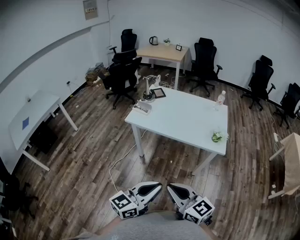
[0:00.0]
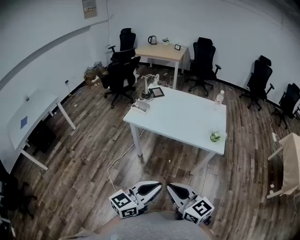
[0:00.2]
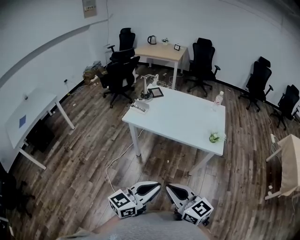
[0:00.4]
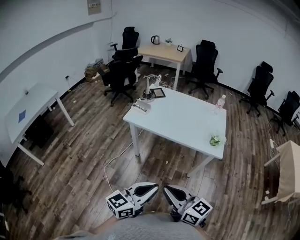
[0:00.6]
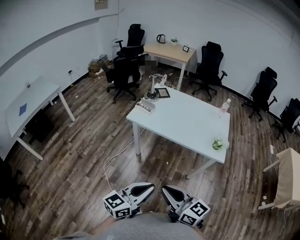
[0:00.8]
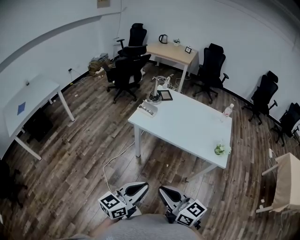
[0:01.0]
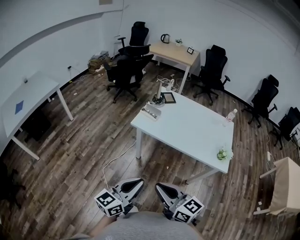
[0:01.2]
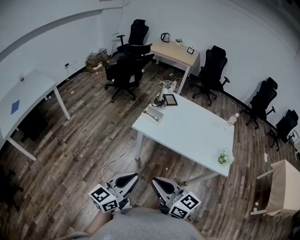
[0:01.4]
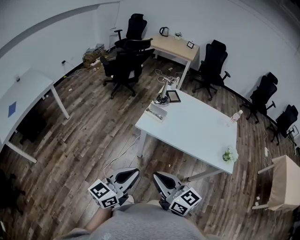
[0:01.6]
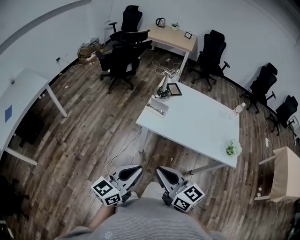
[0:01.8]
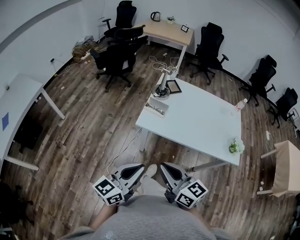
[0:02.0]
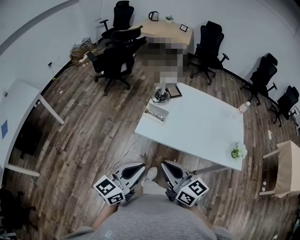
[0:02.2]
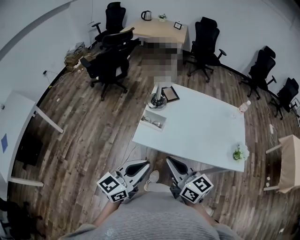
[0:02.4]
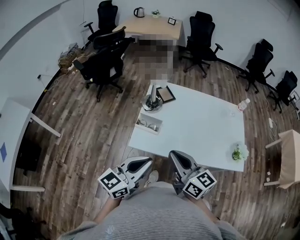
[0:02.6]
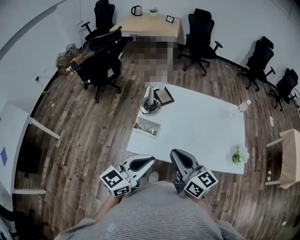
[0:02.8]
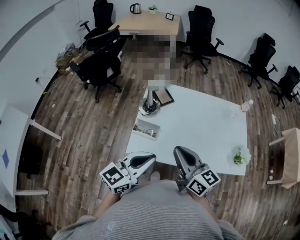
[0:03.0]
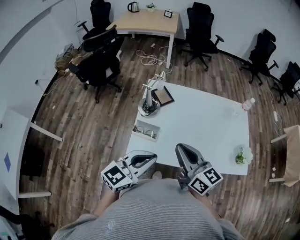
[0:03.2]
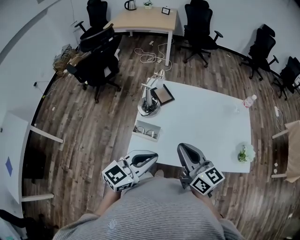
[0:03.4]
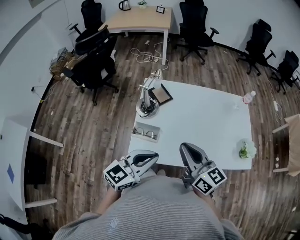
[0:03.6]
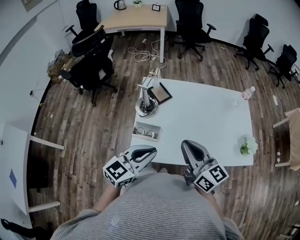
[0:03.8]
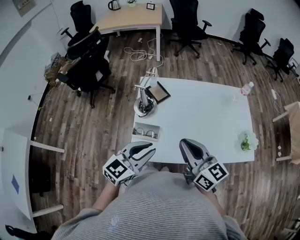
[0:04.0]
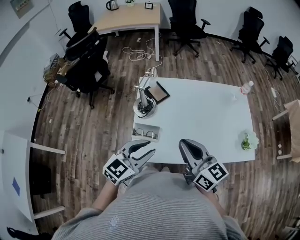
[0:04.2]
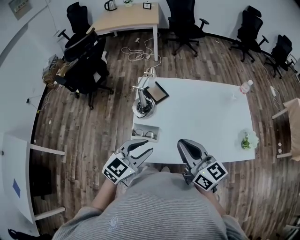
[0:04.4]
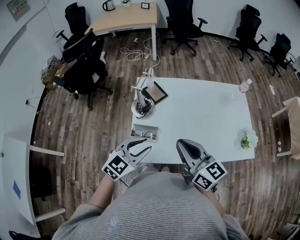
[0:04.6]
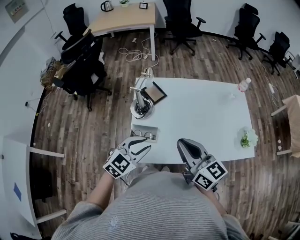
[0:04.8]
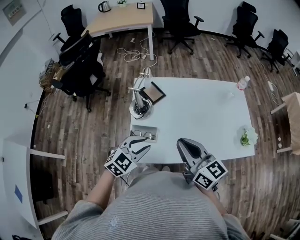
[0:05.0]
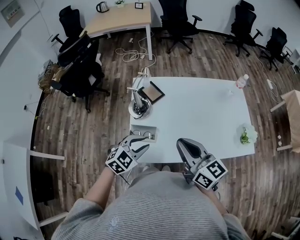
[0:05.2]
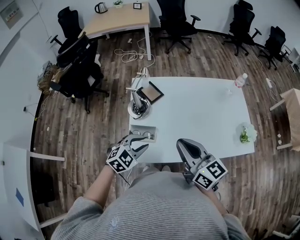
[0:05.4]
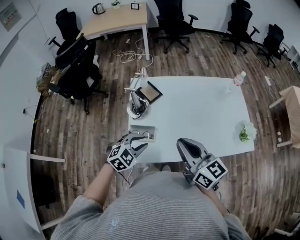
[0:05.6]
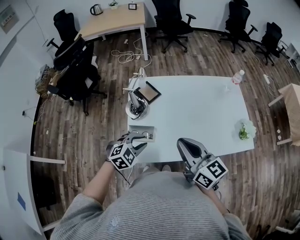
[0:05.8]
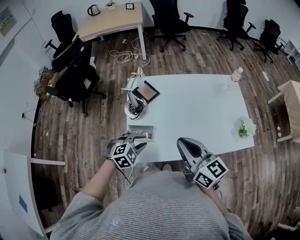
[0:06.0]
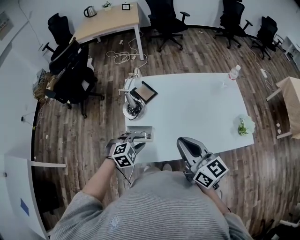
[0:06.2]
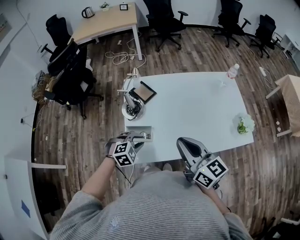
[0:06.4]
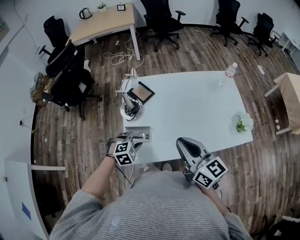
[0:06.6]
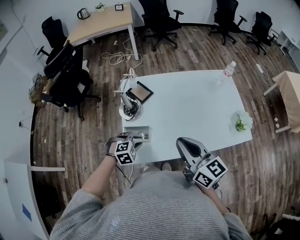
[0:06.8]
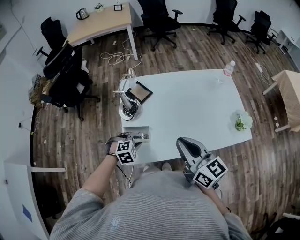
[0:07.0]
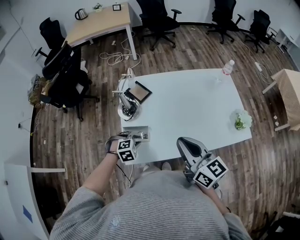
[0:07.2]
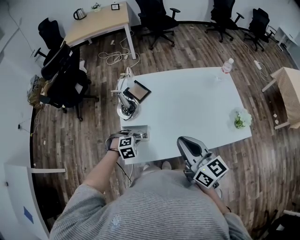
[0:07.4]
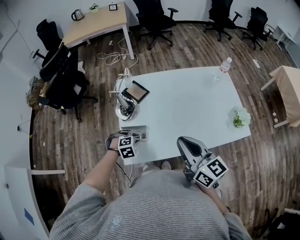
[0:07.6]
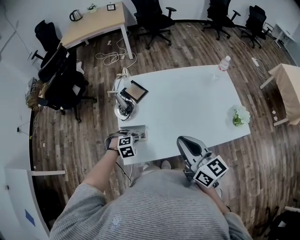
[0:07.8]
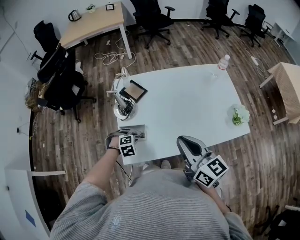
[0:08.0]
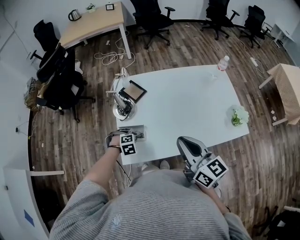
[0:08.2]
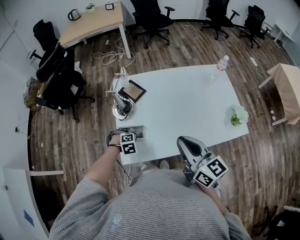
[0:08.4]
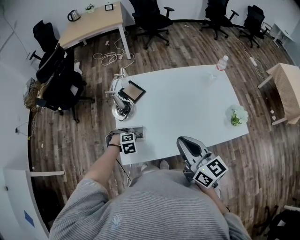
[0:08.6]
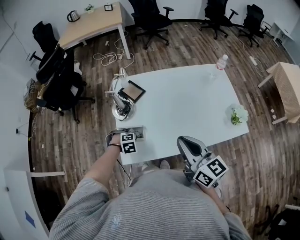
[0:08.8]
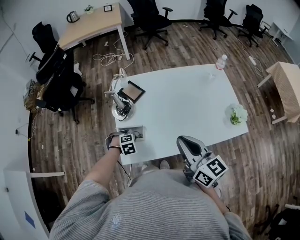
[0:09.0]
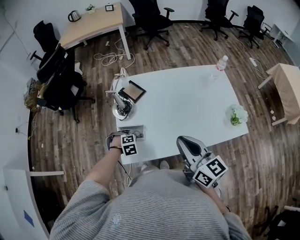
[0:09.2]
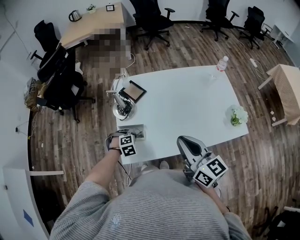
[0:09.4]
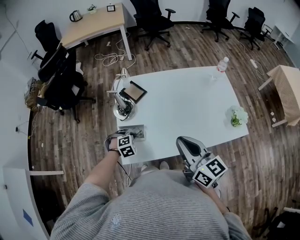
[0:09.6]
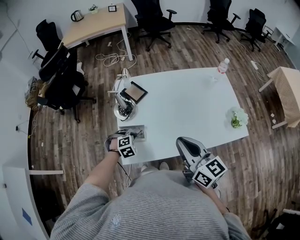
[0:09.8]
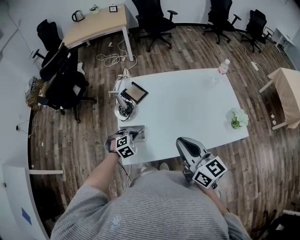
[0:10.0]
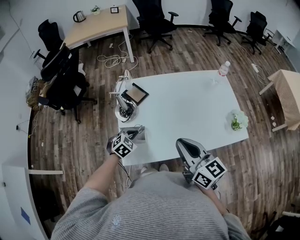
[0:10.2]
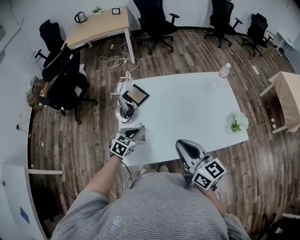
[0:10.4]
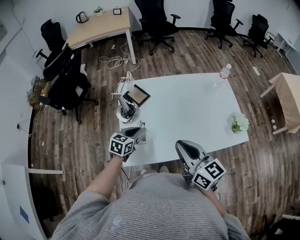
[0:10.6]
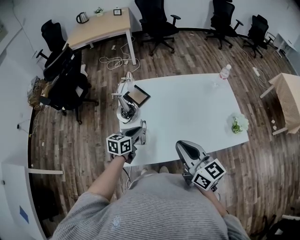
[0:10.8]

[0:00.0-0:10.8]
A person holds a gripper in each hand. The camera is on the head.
0:00.0 to 0:01.6: The grippers both shift to the left and forward by approximately 30 cm.
0:01.6 to 0:03.0: The grippers both shift forward by approximately 35 cm. The right gripper swivels some 20 degrees, while the left gripper turns by approximately 20 degrees.
0:03.0 to 0:04.6: The left gripper goes roughly 10 cm forward and downward, swivels roughly 30 degrees, and opens up. The right gripper goes approximately 5 cm forward.
0:04.6 to 0:06.2: The left gripper heads downward, covering roughly 10 cm, and tilts its fingers some 30 degrees downward.
0:06.2 to 0:07.8: The left gripper moves downward, roughly 10 cm.
0:07.8 to 0:09.2: The grippers move only a little.
0:09.2 to 0:10.8: The left gripper travels upward by about 15 cm, and points its fingers some 50 degrees further upward.

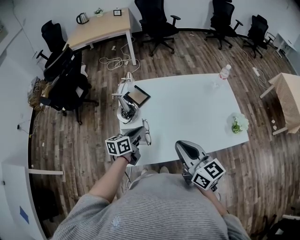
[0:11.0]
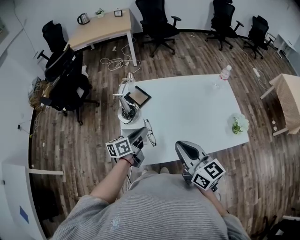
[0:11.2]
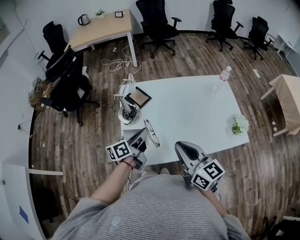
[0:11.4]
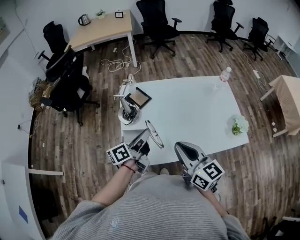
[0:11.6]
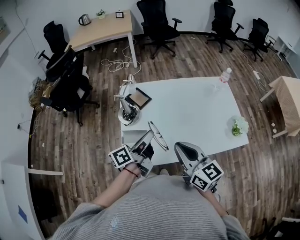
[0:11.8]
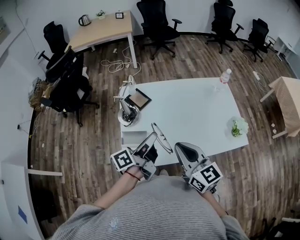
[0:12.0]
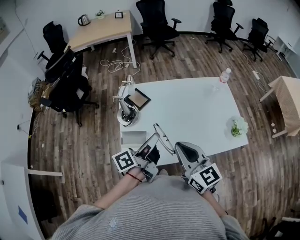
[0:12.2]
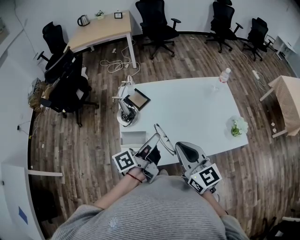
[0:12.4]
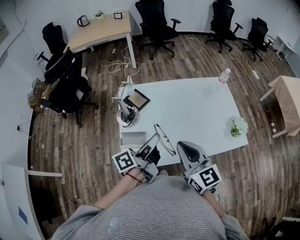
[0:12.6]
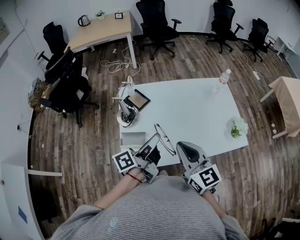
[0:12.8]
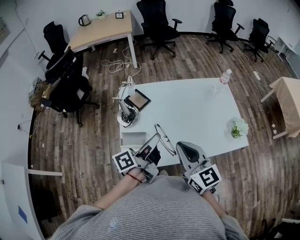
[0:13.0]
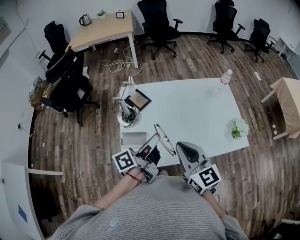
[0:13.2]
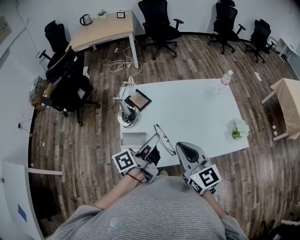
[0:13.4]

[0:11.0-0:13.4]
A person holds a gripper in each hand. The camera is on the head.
0:11.0 to 0:12.2: The left gripper is displaced upward, to the right and backward by some 15 cm, and turns by approximately 50 degrees.
0:12.2 to 0:13.4: Both grippers stay about where they are.

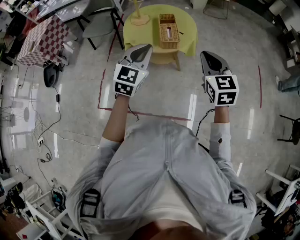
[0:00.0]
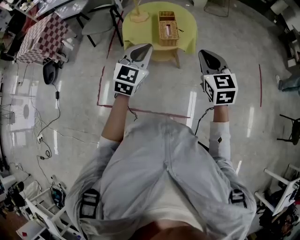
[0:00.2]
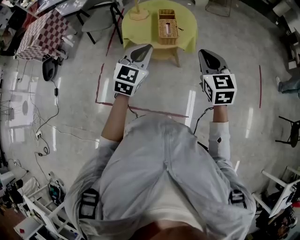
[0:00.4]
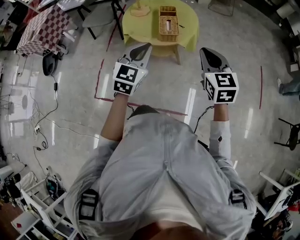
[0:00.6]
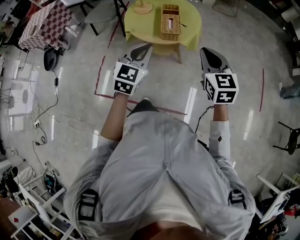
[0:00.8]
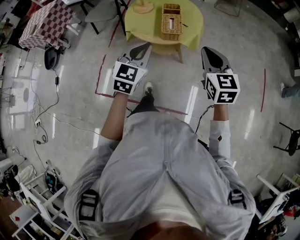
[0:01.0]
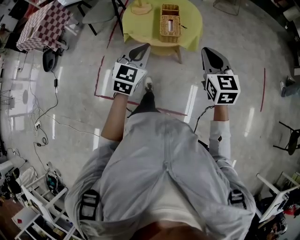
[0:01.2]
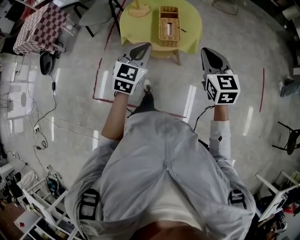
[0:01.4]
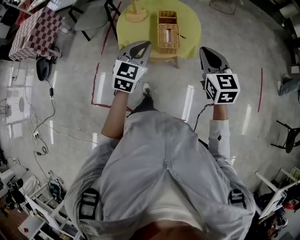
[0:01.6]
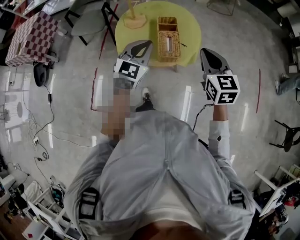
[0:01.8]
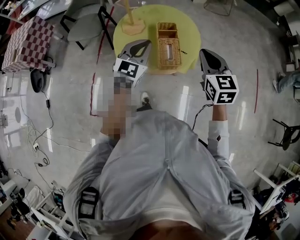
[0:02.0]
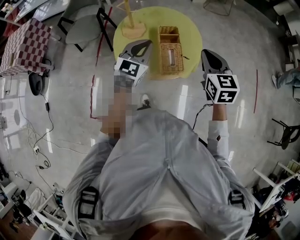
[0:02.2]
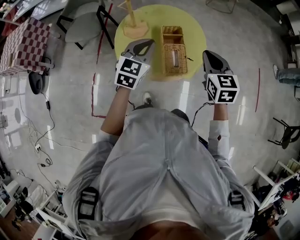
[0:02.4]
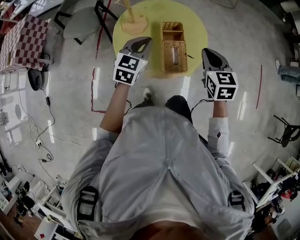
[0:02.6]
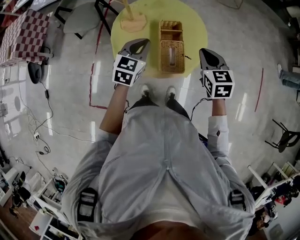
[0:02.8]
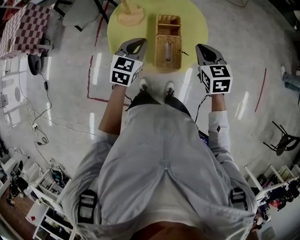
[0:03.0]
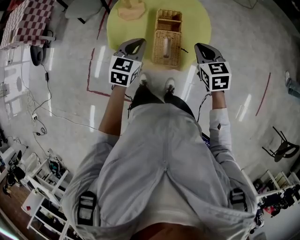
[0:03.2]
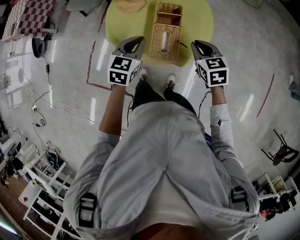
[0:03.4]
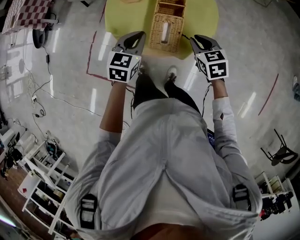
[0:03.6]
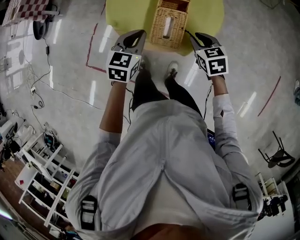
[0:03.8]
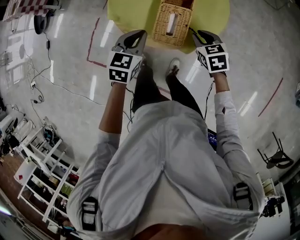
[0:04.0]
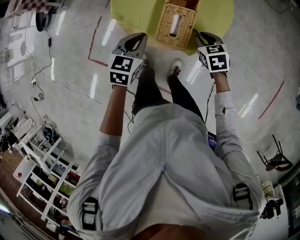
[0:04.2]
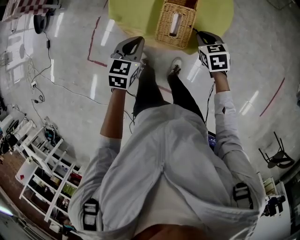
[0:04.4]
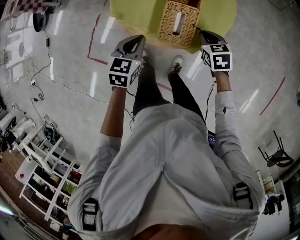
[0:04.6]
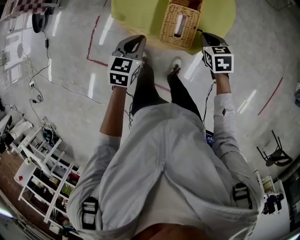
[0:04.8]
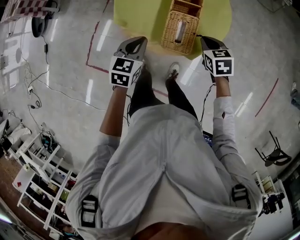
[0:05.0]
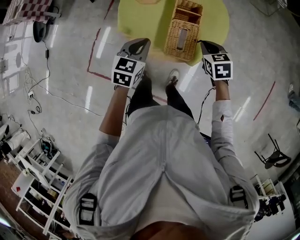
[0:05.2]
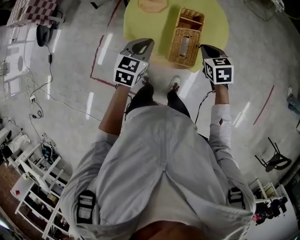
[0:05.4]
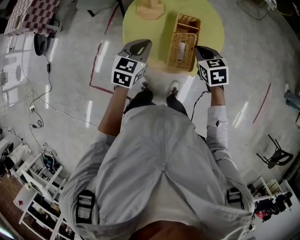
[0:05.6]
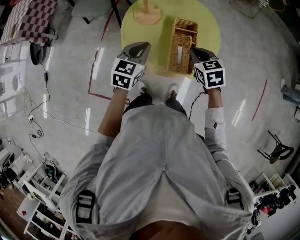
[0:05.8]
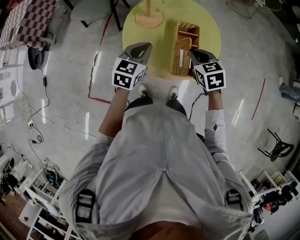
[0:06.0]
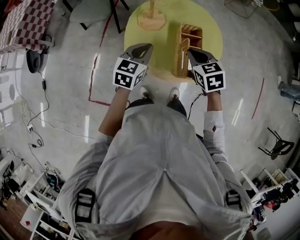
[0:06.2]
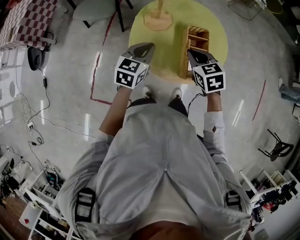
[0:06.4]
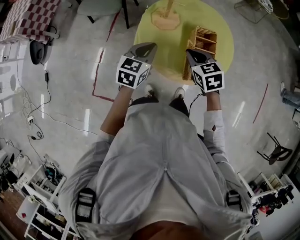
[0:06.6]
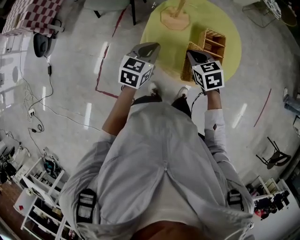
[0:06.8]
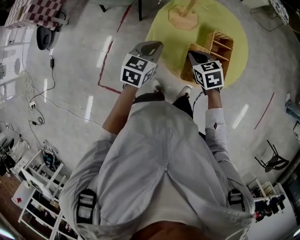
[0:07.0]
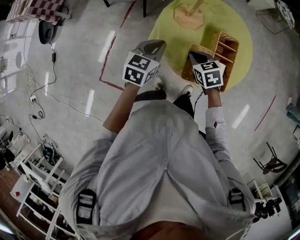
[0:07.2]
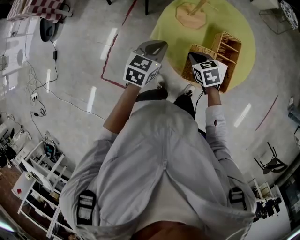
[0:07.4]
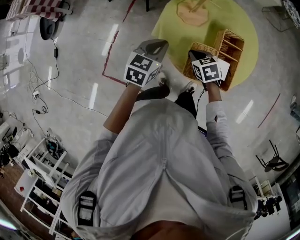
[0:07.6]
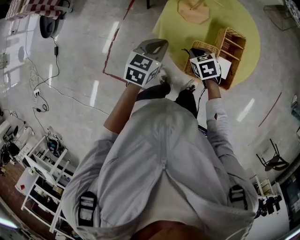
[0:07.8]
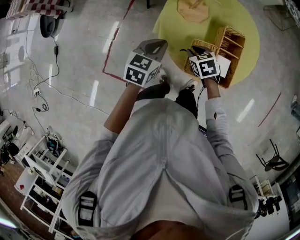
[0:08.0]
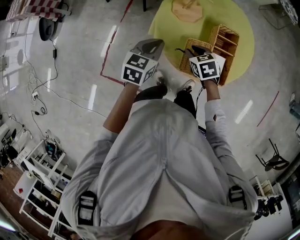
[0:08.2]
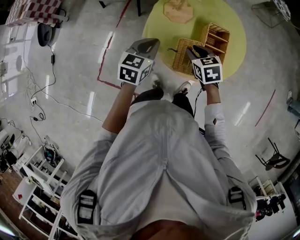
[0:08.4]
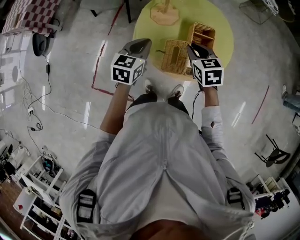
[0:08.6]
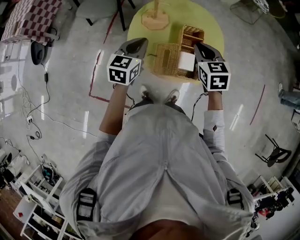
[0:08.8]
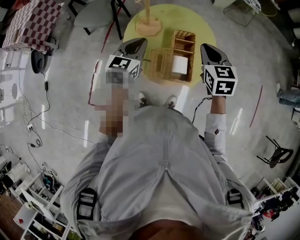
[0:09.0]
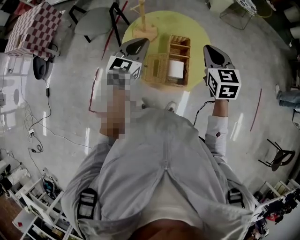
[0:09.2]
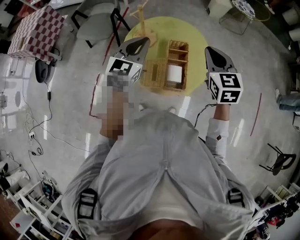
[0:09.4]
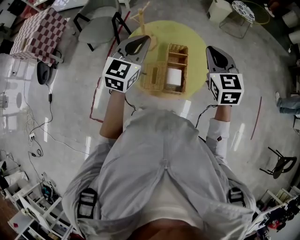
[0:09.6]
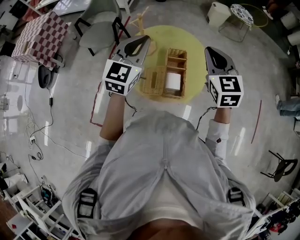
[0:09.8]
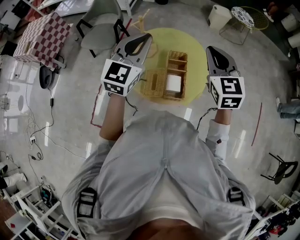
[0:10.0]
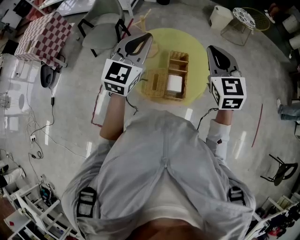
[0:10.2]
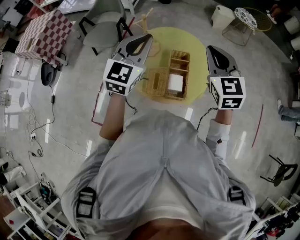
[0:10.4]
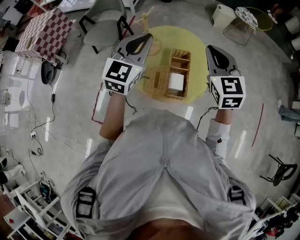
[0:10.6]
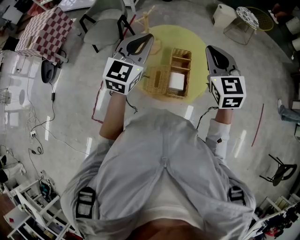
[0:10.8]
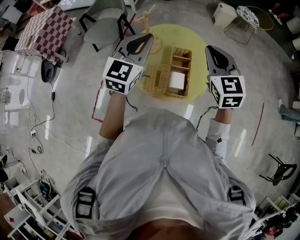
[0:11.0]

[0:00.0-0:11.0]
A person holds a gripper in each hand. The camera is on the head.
0:00.0 to 0:01.6: The left gripper heads forward and downward, covering some 20 cm. Meanwhile the right gripper heads forward, covering approximately 15 cm.
0:01.6 to 0:03.2: Both grippers travel together forward and downward, approximately 25 cm. The right gripper rotates some 20 degrees.
0:03.2 to 0:04.8: The right gripper goes some 15 cm downward; the left gripper is displaced downward, backward and to the left by approximately 10 cm.
0:04.8 to 0:06.2: The left gripper moves forward, upward and to the left, about 15 cm; the right gripper shifts about 20 cm upward and to the left.
0:06.2 to 0:07.8: The left gripper moves to the left and downward, some 10 cm. The right gripper goes approximately 20 cm downward and to the left, and rotates roughly 20 degrees.
0:07.8 to 0:09.4: The left gripper heads upward and to the right, covering some 25 cm, and rotates about 30 degrees. The right gripper heads upward and to the right, covering roughly 40 cm, tilts its fingers approximately 40 degrees upward, and opens, then closes again.
0:09.4 to 0:11.0: The right gripper moves approximately 5 cm; the left gripper shifts roughly 5 cm upward.
